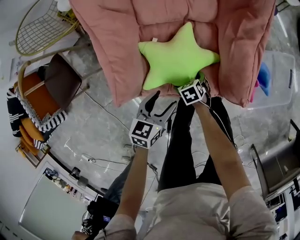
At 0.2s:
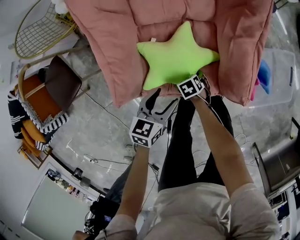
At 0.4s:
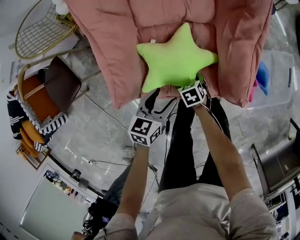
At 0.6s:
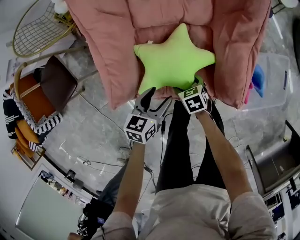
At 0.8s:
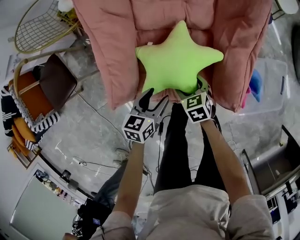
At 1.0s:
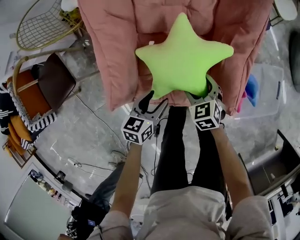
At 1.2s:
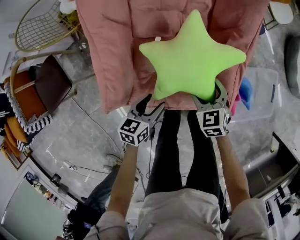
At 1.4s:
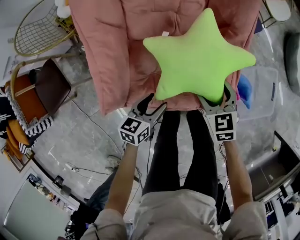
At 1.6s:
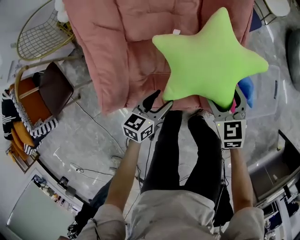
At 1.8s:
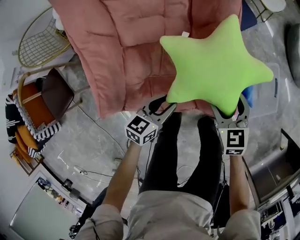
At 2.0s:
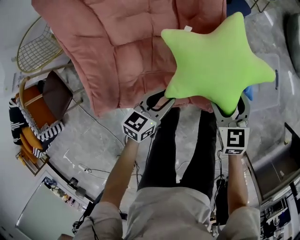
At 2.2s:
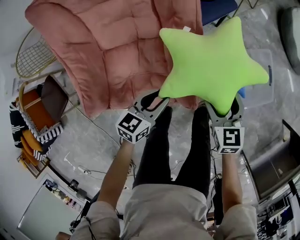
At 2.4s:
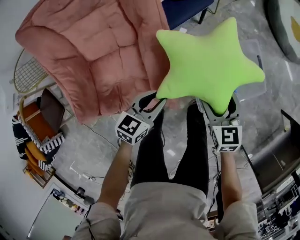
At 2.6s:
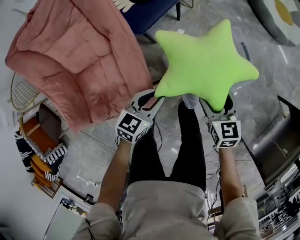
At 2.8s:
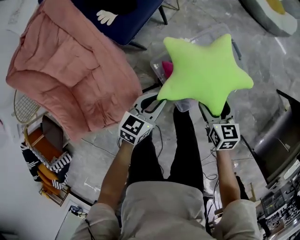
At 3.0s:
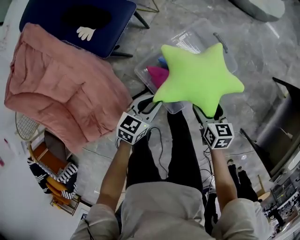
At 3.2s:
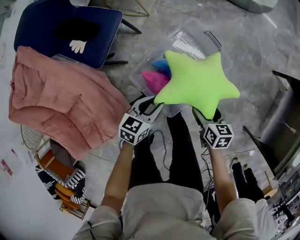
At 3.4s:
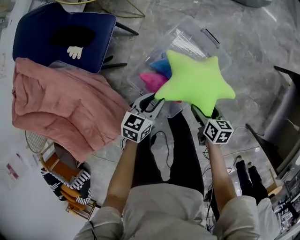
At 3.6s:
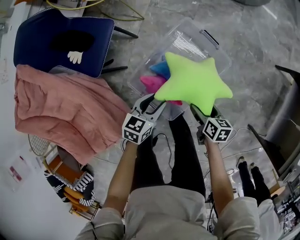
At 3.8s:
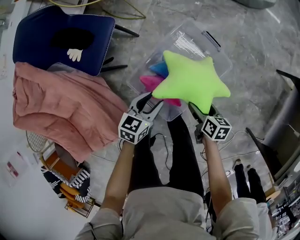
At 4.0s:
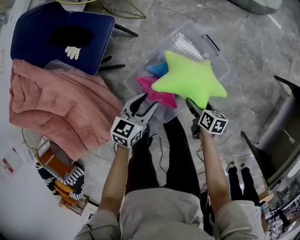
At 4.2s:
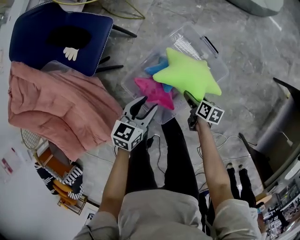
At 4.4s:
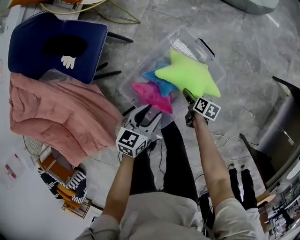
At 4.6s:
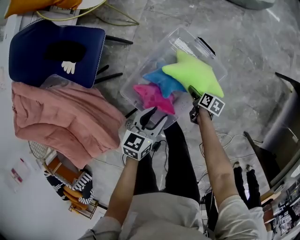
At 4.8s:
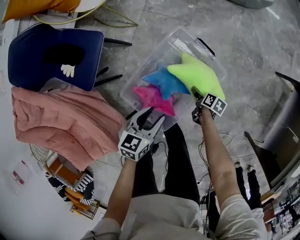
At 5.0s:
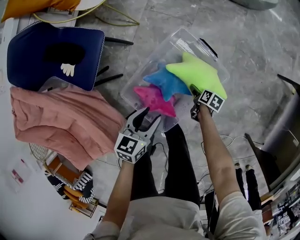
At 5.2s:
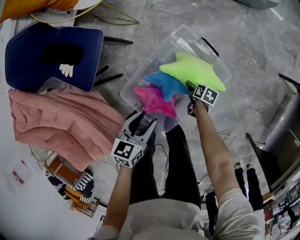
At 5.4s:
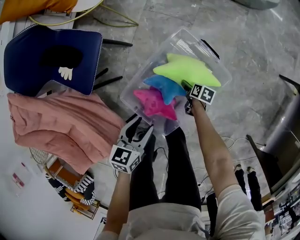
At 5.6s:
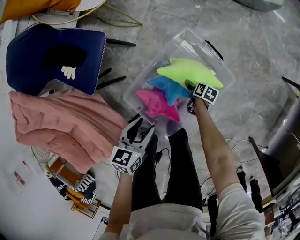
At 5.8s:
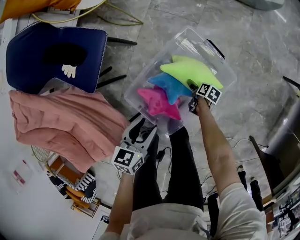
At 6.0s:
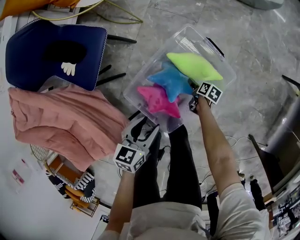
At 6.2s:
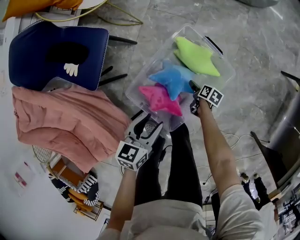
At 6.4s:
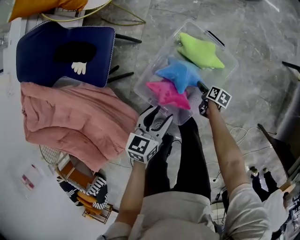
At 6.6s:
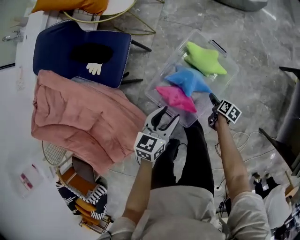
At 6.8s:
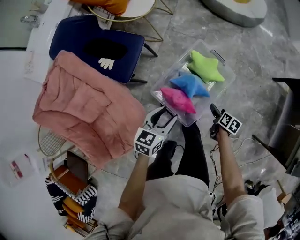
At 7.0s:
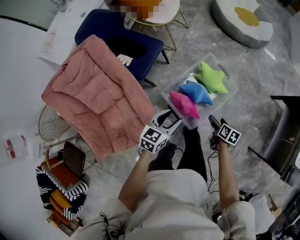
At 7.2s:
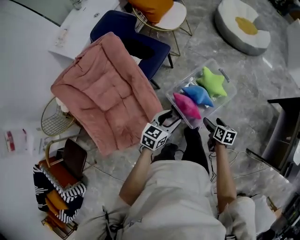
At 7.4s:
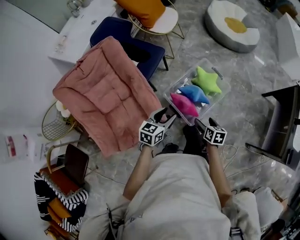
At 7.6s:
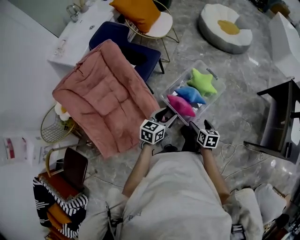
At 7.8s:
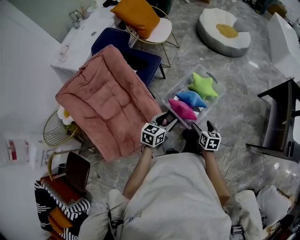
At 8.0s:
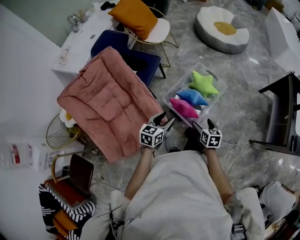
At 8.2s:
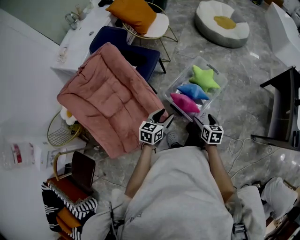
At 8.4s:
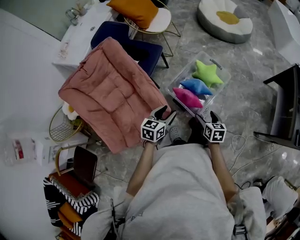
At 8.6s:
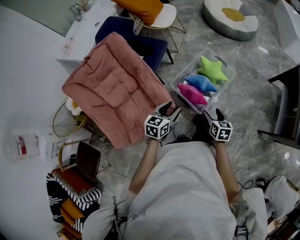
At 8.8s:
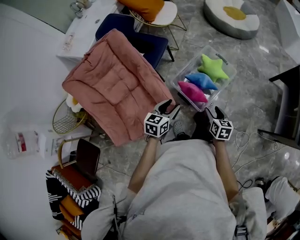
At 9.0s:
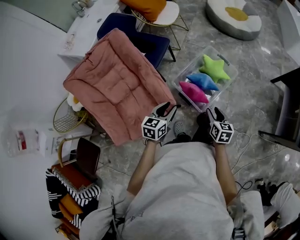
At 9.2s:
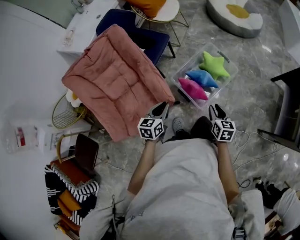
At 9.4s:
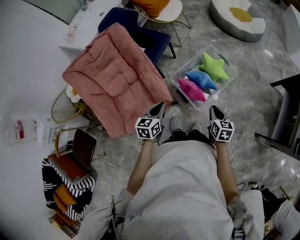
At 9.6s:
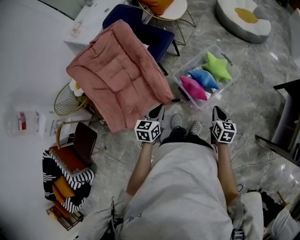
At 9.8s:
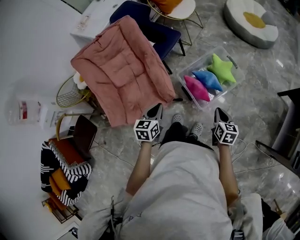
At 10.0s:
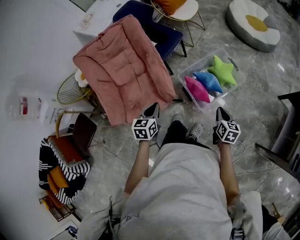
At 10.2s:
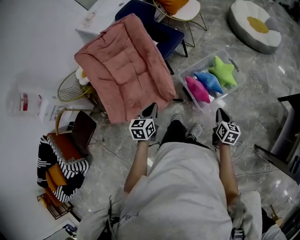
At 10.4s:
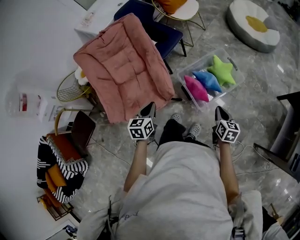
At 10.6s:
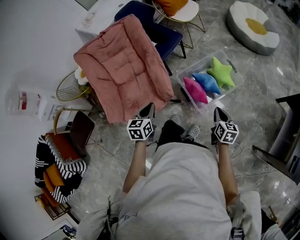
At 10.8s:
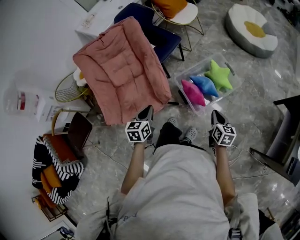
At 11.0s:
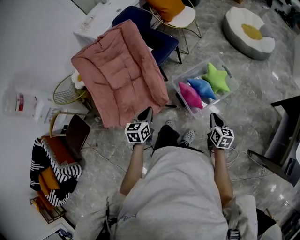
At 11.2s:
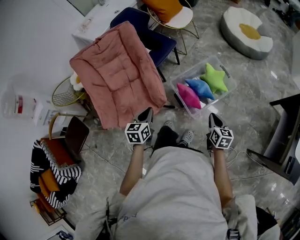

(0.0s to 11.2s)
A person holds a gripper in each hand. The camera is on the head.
0.0s - 1.6s: The right gripper is displaced upward by approximately 25 cm, and changes its angle by approximately 40 degrees. Meanwhile the left gripper changes place by some 10 cm.
1.6s - 3.2s: The pair of grippers is taken roughly 50 cm. The right gripper rotates around the line of its fingers by about 60 degrees, clockwise from behind, while the left gripper swivels about 40 degrees, and closes.
3.2s - 4.8s: The left gripper travels forward and to the right by roughly 10 cm; the right gripper is displaced downward and forward by about 25 cm, and turns by roughly 40 degrees.
4.8s - 6.4s: The left gripper moves roughly 5 cm. Meanwhile the right gripper heads to the left, covering some 5 cm, and reaches some 10 cm downward, then returns.
6.4s - 8.0s: The left gripper travels backward, upward and to the left by some 40 cm. Meanwhile the right gripper goes about 50 cm upward and backward, and rotates about 50 degrees.
8.0s - 9.6s: The left gripper shifts about 5 cm backward, changes its angle by approximately 20 degrees, and closes its fingers. The right gripper heads to the right, covering some 5 cm, and closes.

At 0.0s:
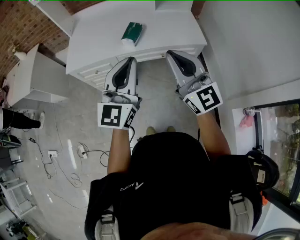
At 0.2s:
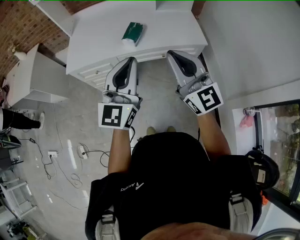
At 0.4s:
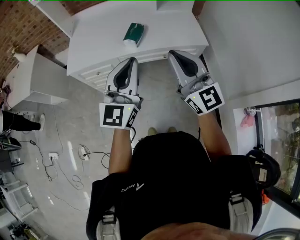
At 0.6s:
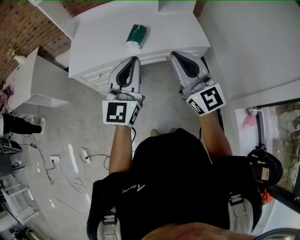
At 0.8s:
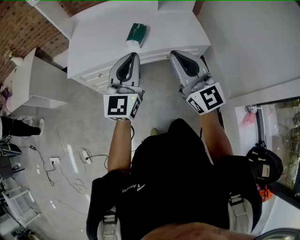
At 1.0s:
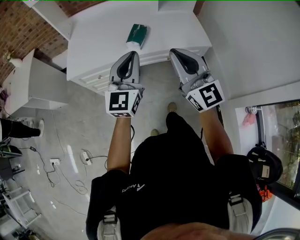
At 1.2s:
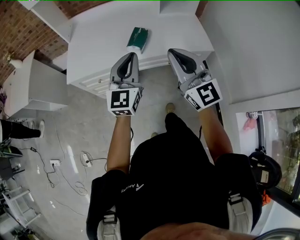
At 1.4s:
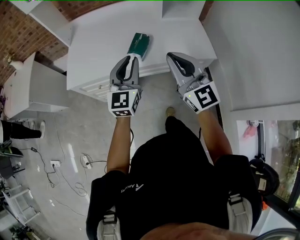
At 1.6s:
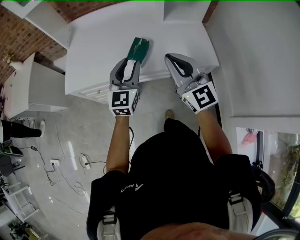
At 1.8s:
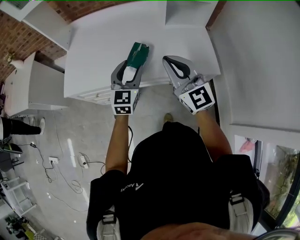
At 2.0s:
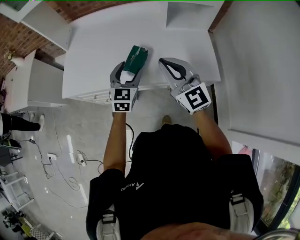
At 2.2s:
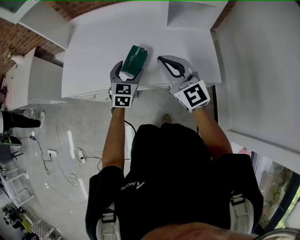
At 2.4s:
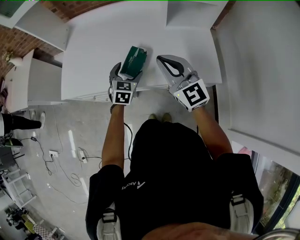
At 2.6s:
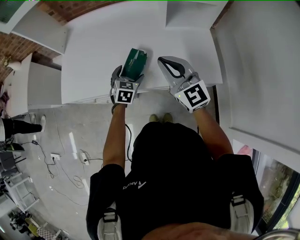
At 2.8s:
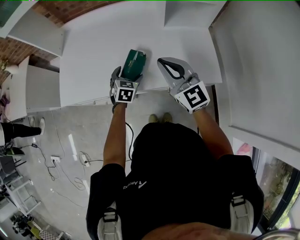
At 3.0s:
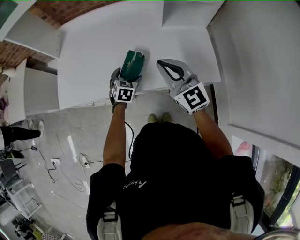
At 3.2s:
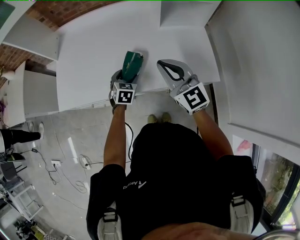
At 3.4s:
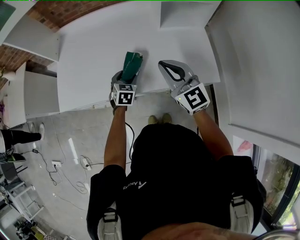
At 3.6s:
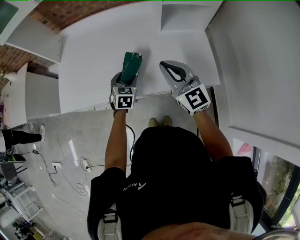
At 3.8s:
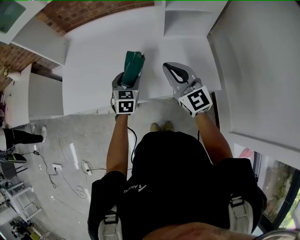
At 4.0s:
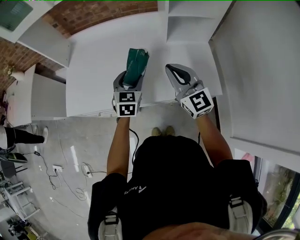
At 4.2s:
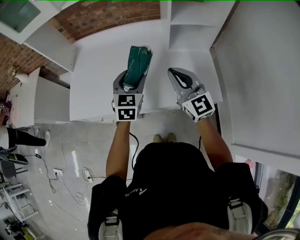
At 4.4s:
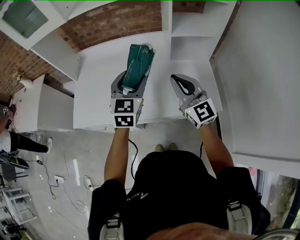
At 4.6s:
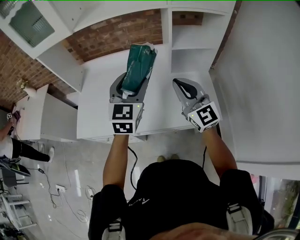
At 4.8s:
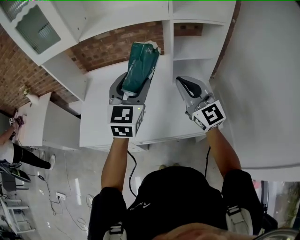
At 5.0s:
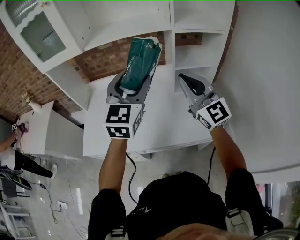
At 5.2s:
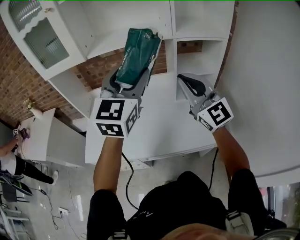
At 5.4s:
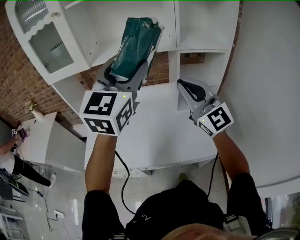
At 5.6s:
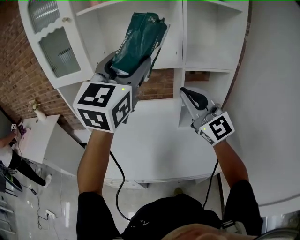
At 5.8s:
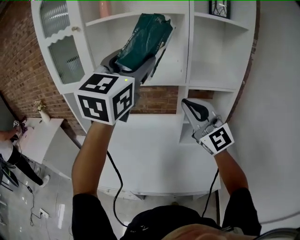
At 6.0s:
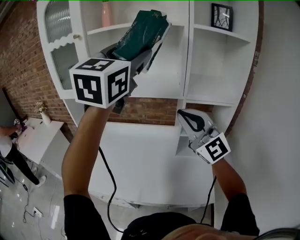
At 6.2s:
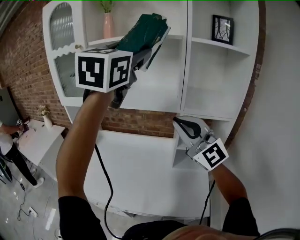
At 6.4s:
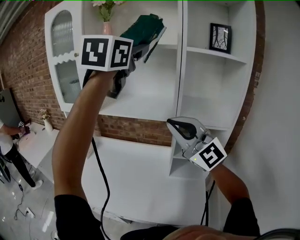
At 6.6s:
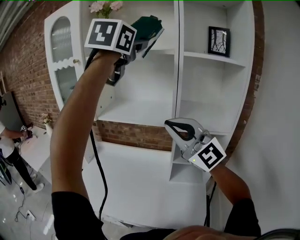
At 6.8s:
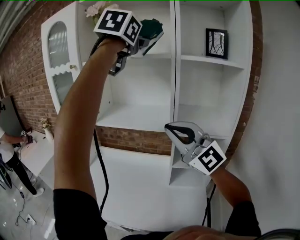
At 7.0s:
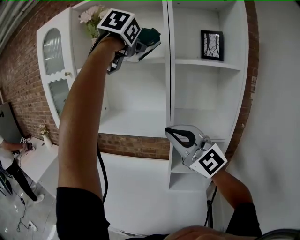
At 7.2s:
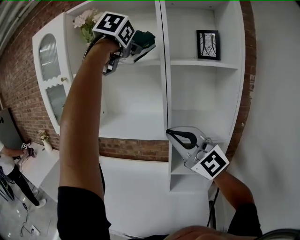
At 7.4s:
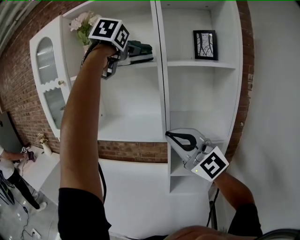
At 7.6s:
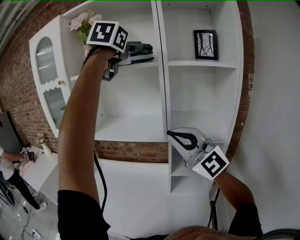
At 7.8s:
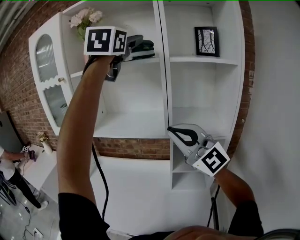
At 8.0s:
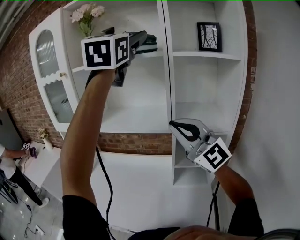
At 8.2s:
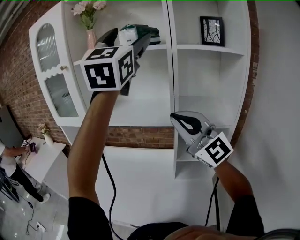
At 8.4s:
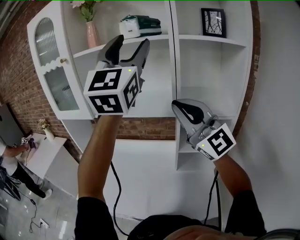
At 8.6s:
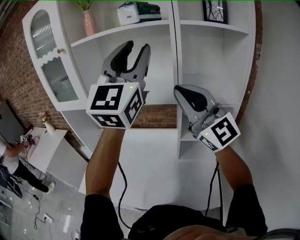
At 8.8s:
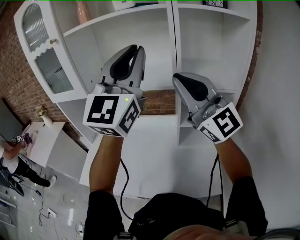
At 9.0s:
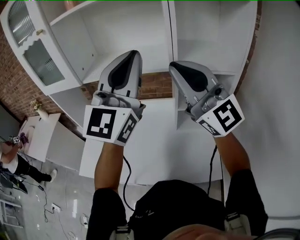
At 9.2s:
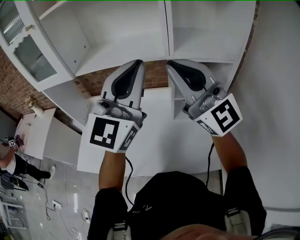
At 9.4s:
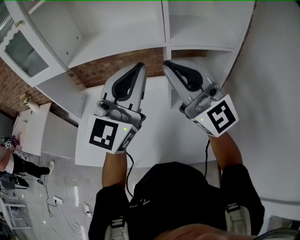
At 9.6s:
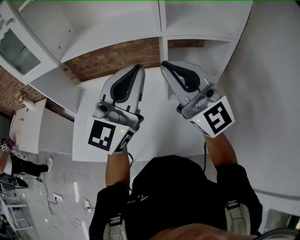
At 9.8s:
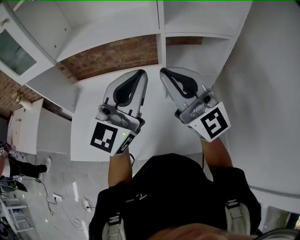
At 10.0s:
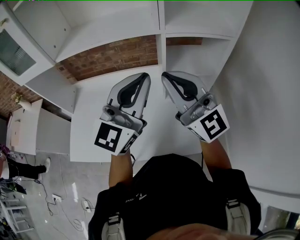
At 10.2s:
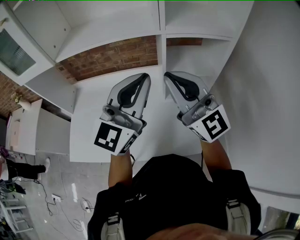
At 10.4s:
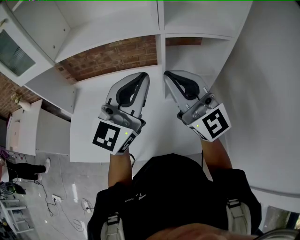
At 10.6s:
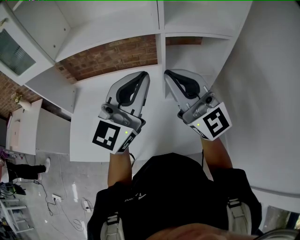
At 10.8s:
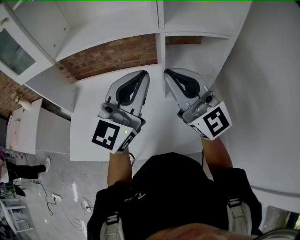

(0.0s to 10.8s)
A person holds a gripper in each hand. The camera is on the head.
0.0s - 1.6s: The right gripper heads forward, covering about 20 cm, while the left gripper goes some 30 cm forward and downward.
1.6s - 3.0s: The right gripper shifts approximately 15 cm forward and downward. The left gripper moves downward and forward, approximately 25 cm, tilts its fingers about 40 degrees downward, and opens.
3.0s - 4.6s: The right gripper goes roughly 10 cm upward, while the left gripper travels upward by about 35 cm, points its fingers some 40 degrees further upward, and closes.
4.6s - 6.2s: The left gripper shifts about 40 cm upward, while the right gripper goes roughly 25 cm upward, and turns by roughly 30 degrees.
6.2s - 7.8s: The left gripper goes about 20 cm upward, forward and to the right, and opens its fingers. Meanwhile the right gripper moves to the right, approximately 5 cm.
7.8s - 9.2s: The left gripper heads downward and backward, covering about 35 cm, turns by some 30 degrees, and closes.
9.2s - 10.8s: Both grippers travel together downward, approximately 10 cm.

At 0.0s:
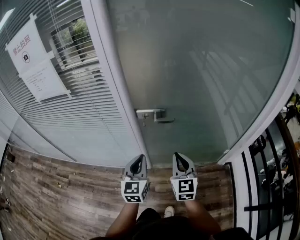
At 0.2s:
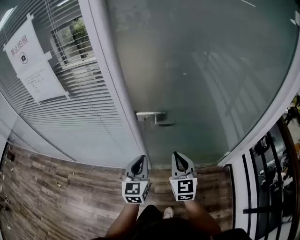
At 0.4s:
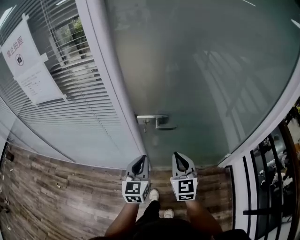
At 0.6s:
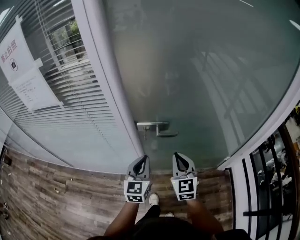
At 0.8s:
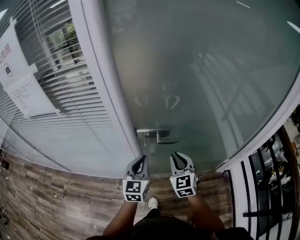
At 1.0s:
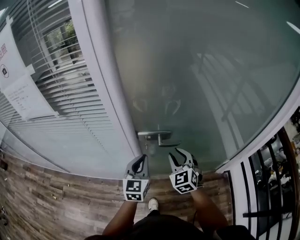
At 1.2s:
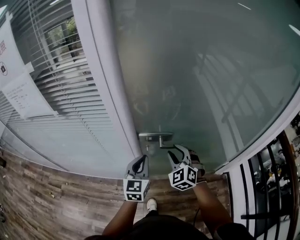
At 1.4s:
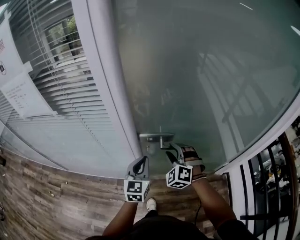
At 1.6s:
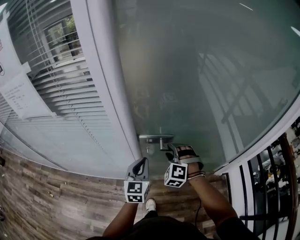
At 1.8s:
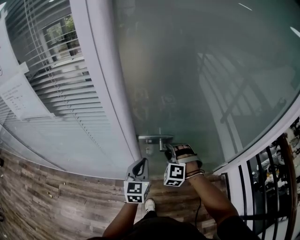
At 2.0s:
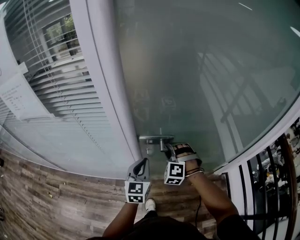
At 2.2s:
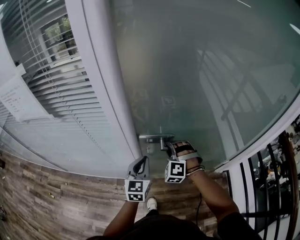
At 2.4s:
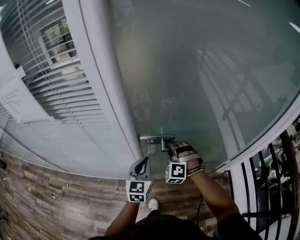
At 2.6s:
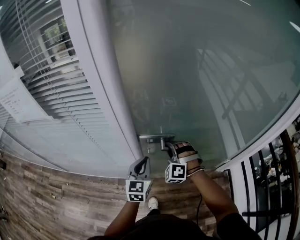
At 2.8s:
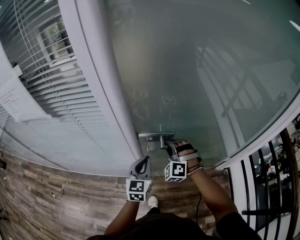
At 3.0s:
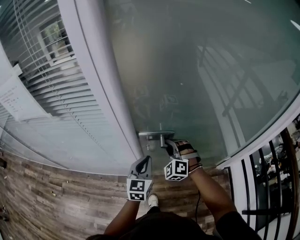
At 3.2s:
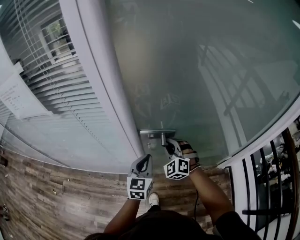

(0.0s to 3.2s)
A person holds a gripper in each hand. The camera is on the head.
0.0s - 1.6s: The grippers both shift forward by approximately 20 cm. The right gripper twists roughly 60 degrees counterclockwise, seen from behind, and opens.
1.6s - 3.2s: The right gripper turns by some 20 degrees, and closes up.
